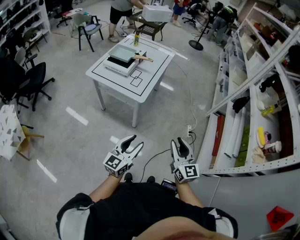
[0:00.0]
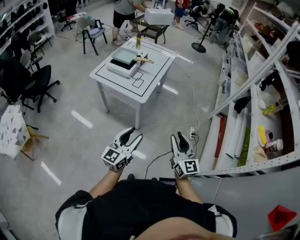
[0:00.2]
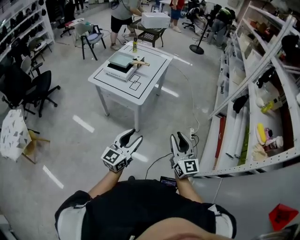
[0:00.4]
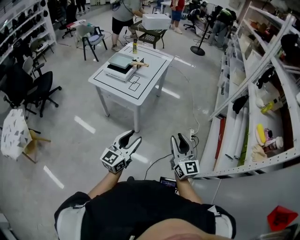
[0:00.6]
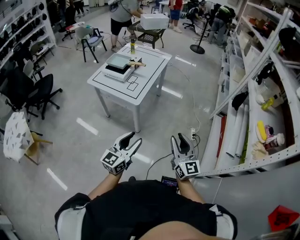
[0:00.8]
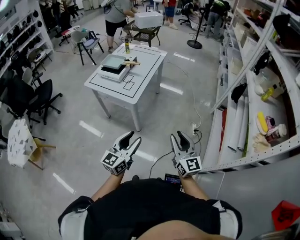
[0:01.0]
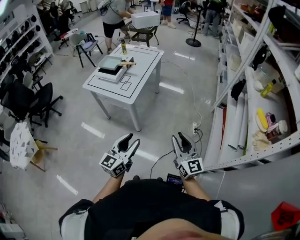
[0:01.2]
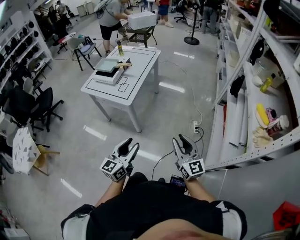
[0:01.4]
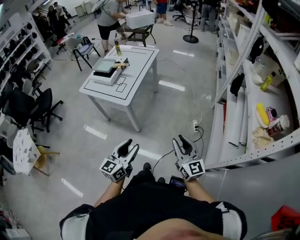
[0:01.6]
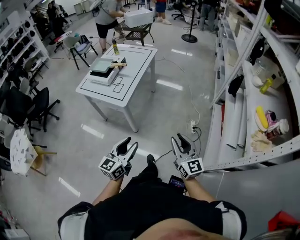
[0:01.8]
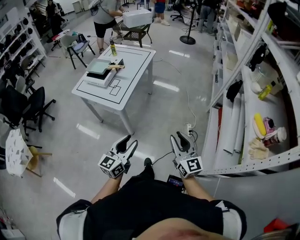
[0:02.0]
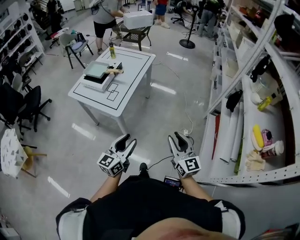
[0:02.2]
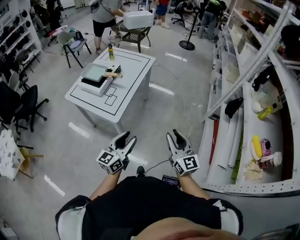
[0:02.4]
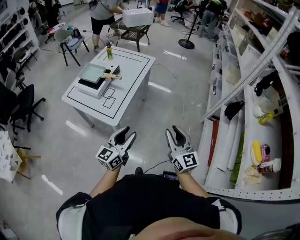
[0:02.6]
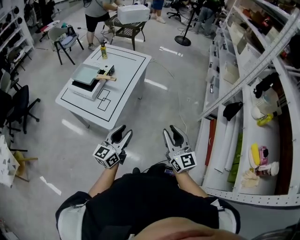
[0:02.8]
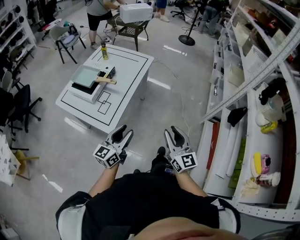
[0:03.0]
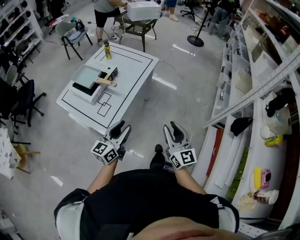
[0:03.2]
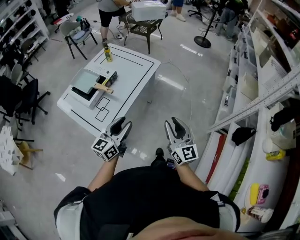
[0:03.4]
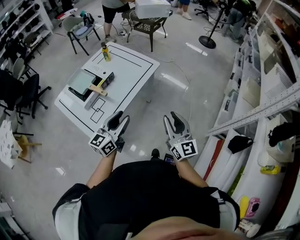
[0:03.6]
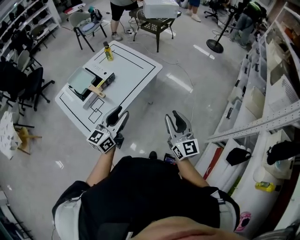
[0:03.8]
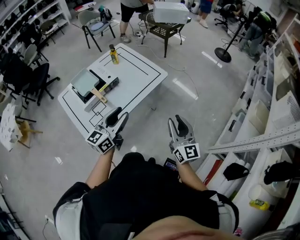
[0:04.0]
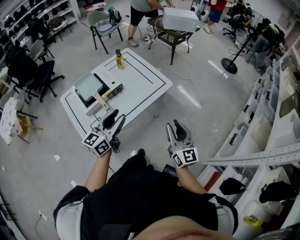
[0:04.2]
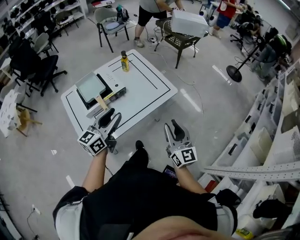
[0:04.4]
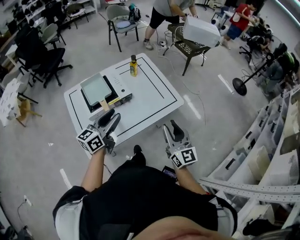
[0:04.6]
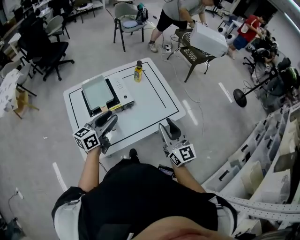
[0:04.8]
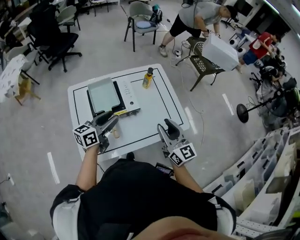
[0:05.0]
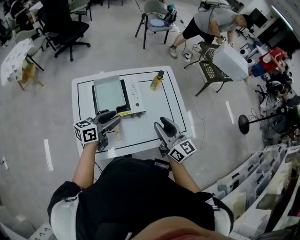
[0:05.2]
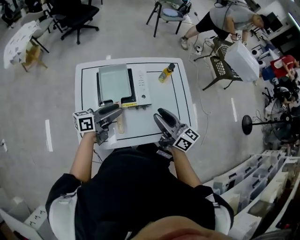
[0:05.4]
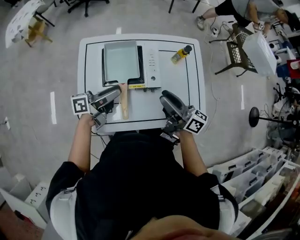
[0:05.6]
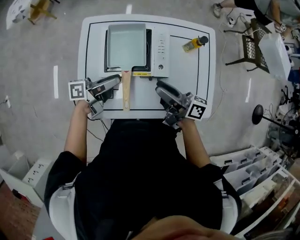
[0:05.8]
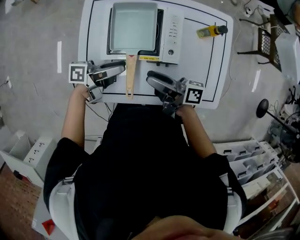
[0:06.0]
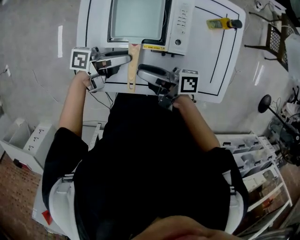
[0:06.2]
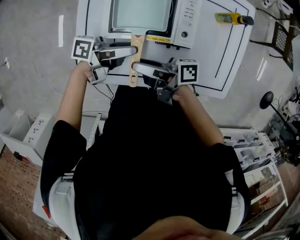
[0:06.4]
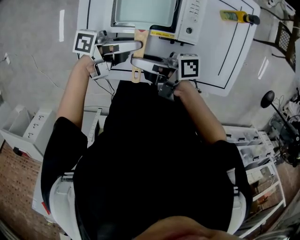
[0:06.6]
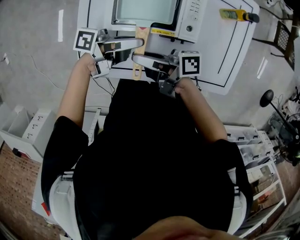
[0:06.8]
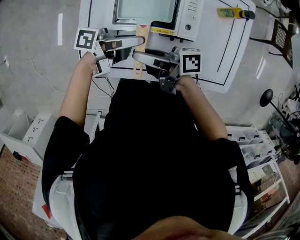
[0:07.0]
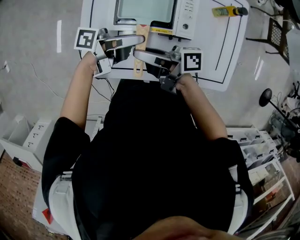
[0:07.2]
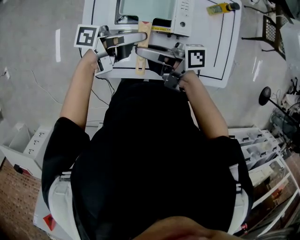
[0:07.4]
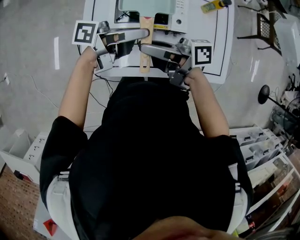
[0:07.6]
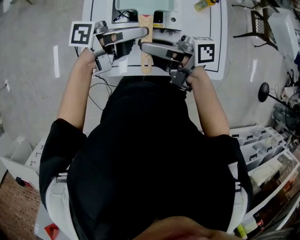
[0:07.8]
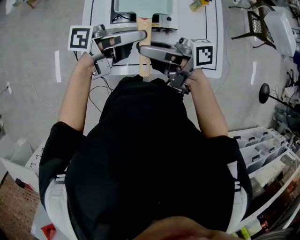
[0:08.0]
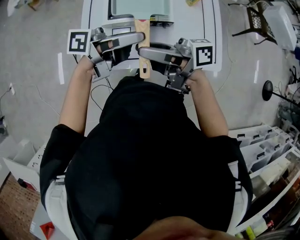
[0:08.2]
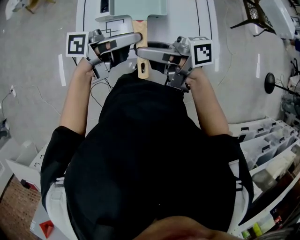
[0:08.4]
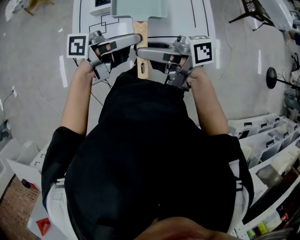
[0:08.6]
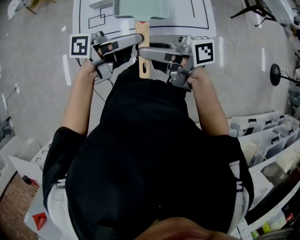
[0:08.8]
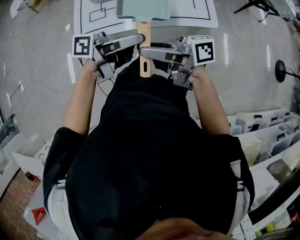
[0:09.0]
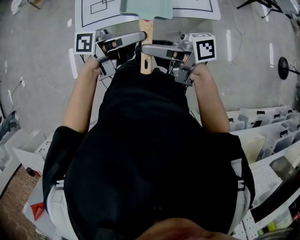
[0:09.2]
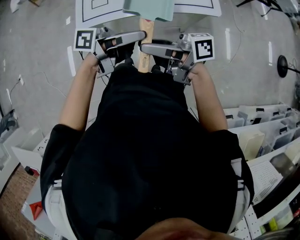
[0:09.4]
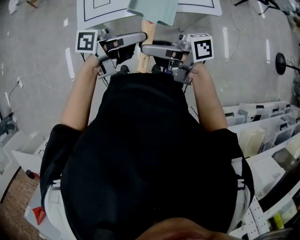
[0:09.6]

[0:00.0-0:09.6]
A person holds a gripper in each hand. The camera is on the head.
0:00.0 to 0:01.6: Both grippers travel together to the right, roughly 15 cm.
0:01.6 to 0:03.2: Both grippers move forward, approximately 40 cm.
0:03.2 to 0:04.8: The right gripper moves about 40 cm, and swivels roughly 40 degrees. The left gripper changes place by approximately 35 cm, and turns by roughly 30 degrees.
0:04.8 to 0:06.4: The right gripper ends up approximately 35 cm from where it was, and rotates approximately 120 degrees; the left gripper heads downward, covering about 20 cm, and rolls counterclockwise, seen from behind, by about 60 degrees.
0:06.4 to 0:08.0: Both grippers move upward, about 15 cm. The right gripper changes its angle by about 20 degrees.
0:08.0 to 0:09.6: The left gripper ends up some 30 cm from where it was; the right gripper ends up approximately 30 cm from where it was.

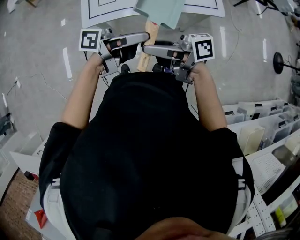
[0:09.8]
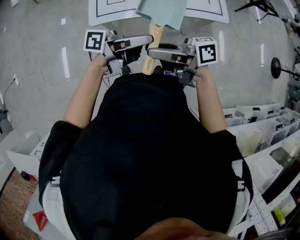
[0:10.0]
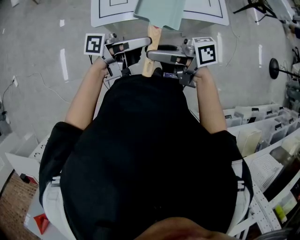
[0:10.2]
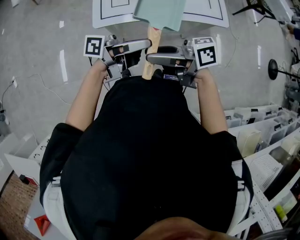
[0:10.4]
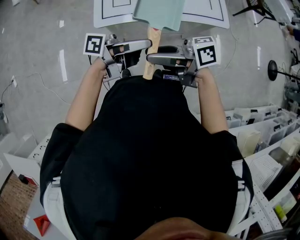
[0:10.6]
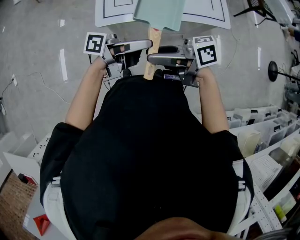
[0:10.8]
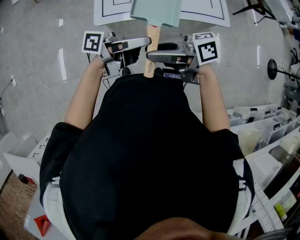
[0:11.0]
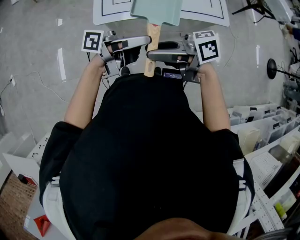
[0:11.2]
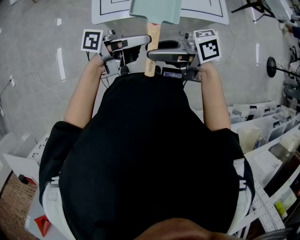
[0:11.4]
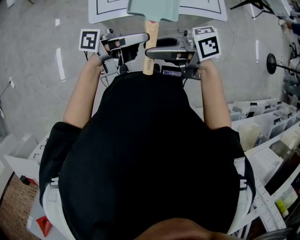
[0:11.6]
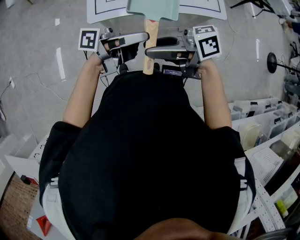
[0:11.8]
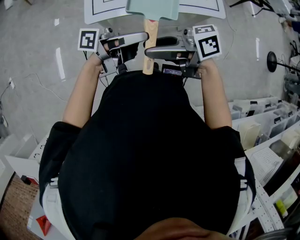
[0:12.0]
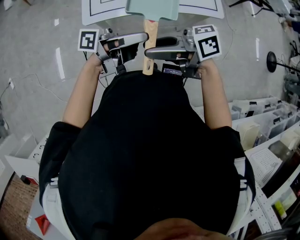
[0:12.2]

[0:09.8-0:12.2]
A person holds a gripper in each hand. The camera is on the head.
0:09.8 to 0:11.0: The grippers make only small movements.
0:11.0 to 0:12.2: Both grippers stay about where they are.

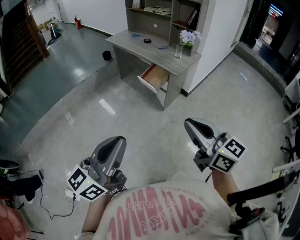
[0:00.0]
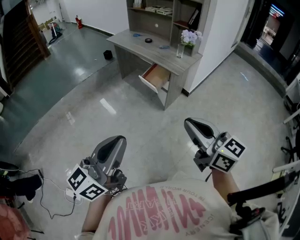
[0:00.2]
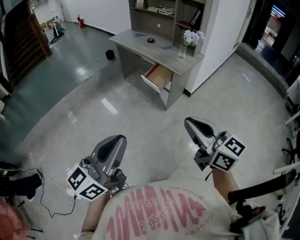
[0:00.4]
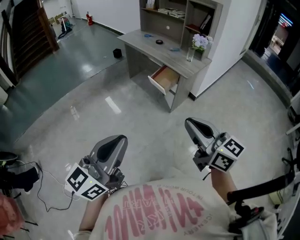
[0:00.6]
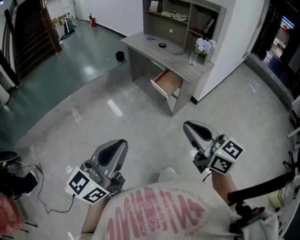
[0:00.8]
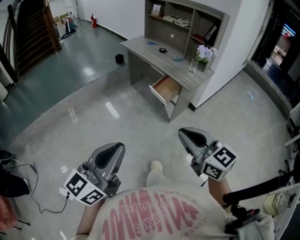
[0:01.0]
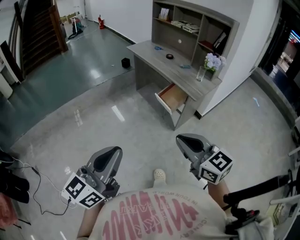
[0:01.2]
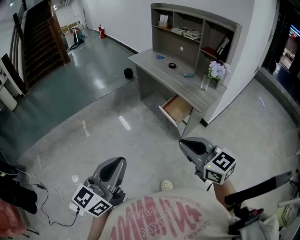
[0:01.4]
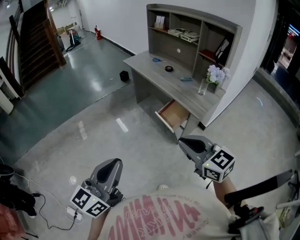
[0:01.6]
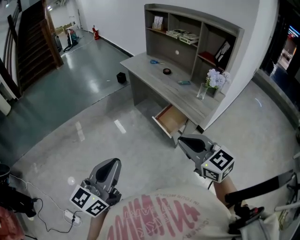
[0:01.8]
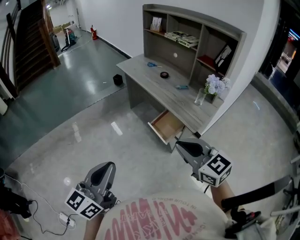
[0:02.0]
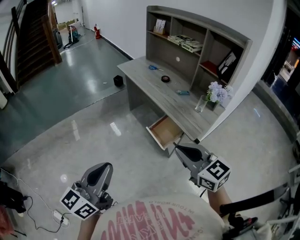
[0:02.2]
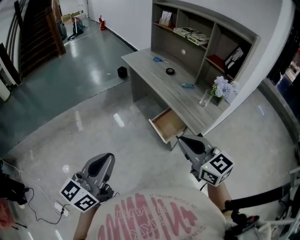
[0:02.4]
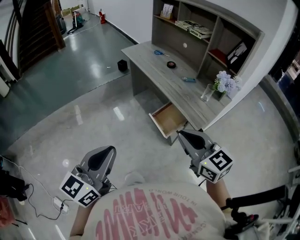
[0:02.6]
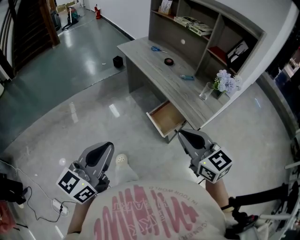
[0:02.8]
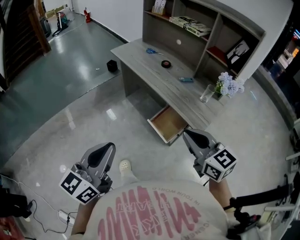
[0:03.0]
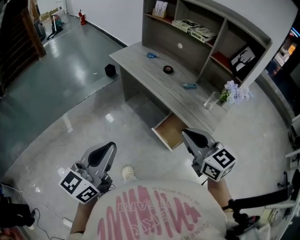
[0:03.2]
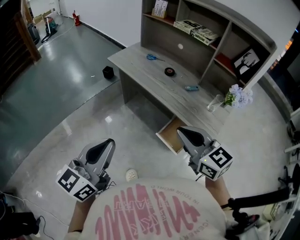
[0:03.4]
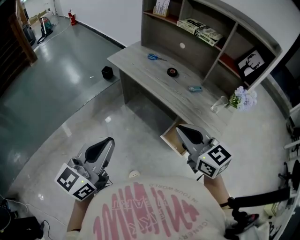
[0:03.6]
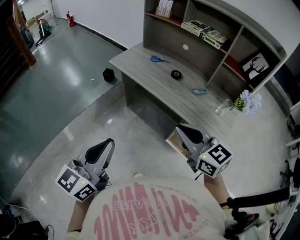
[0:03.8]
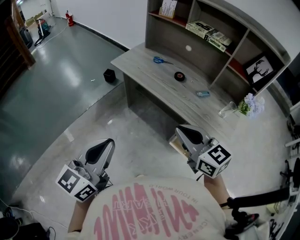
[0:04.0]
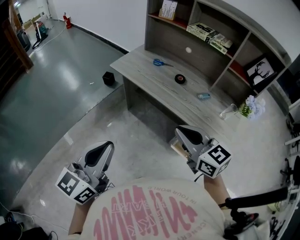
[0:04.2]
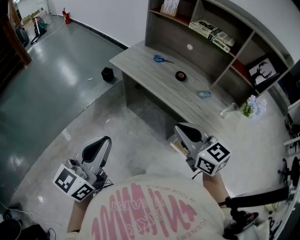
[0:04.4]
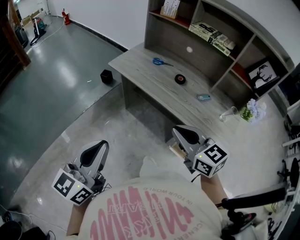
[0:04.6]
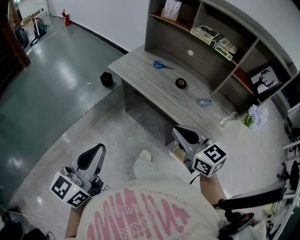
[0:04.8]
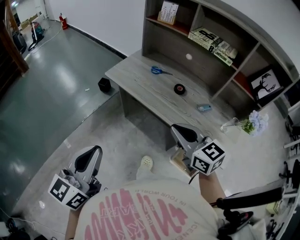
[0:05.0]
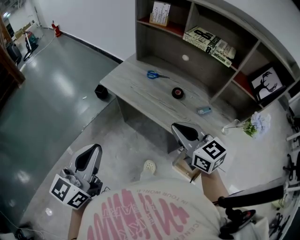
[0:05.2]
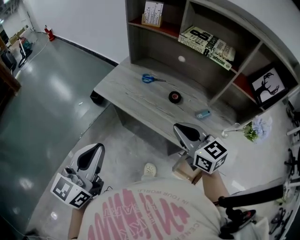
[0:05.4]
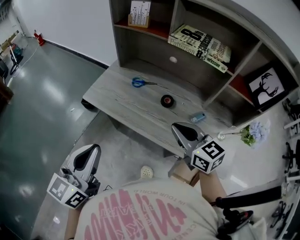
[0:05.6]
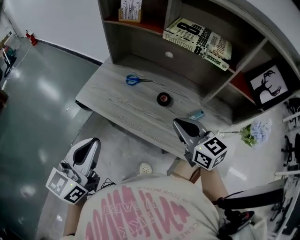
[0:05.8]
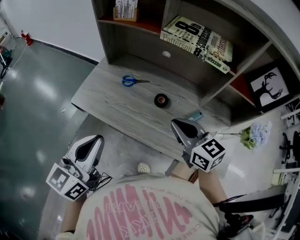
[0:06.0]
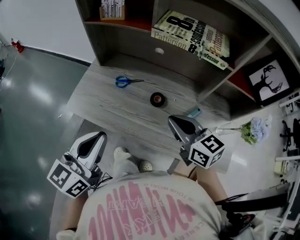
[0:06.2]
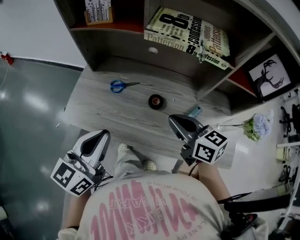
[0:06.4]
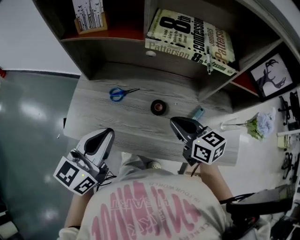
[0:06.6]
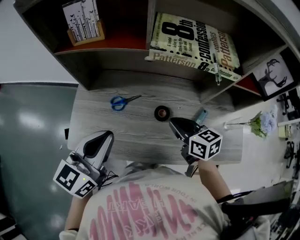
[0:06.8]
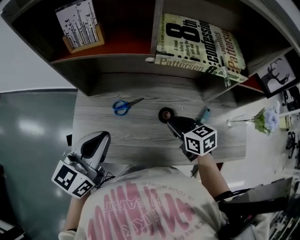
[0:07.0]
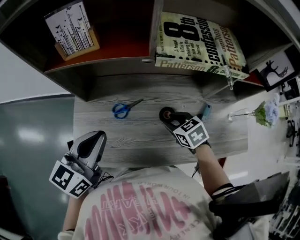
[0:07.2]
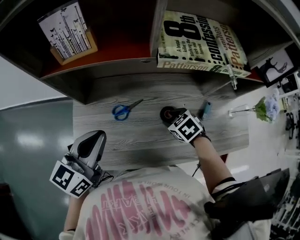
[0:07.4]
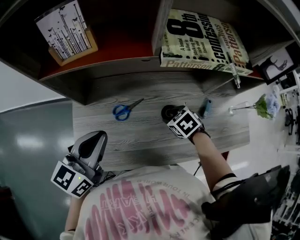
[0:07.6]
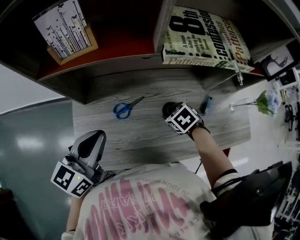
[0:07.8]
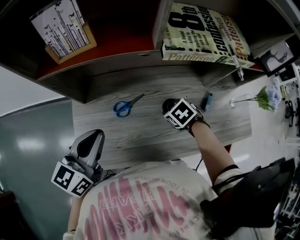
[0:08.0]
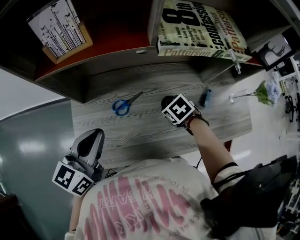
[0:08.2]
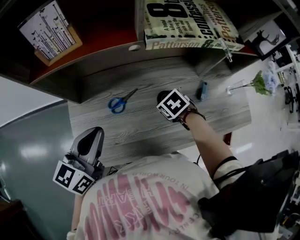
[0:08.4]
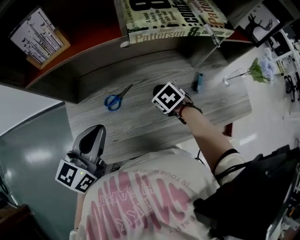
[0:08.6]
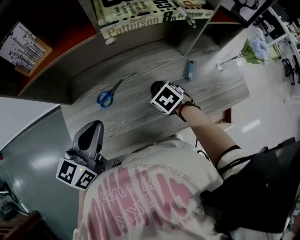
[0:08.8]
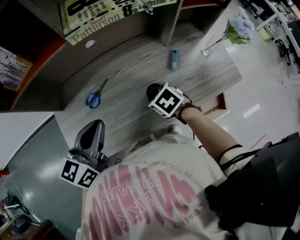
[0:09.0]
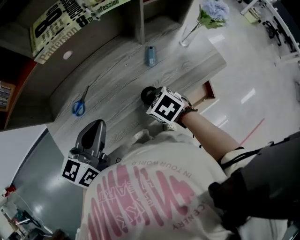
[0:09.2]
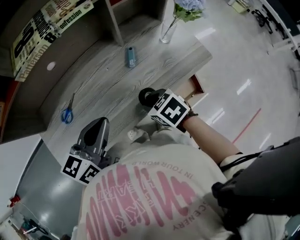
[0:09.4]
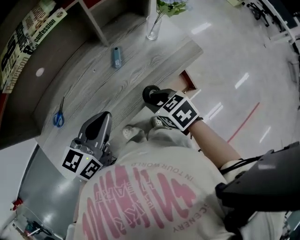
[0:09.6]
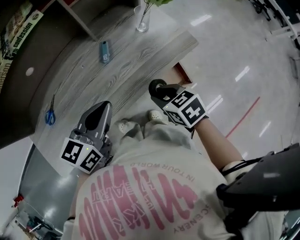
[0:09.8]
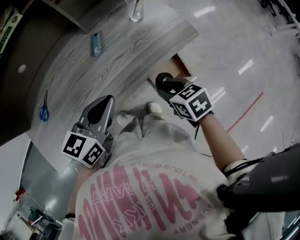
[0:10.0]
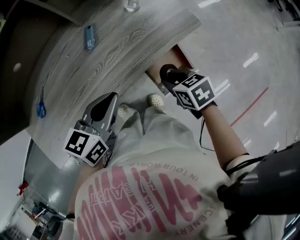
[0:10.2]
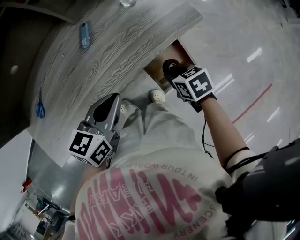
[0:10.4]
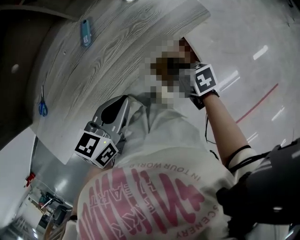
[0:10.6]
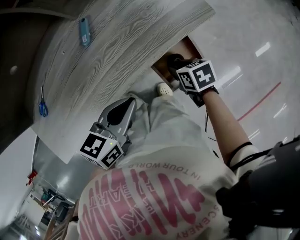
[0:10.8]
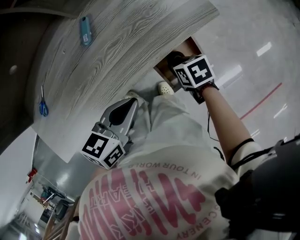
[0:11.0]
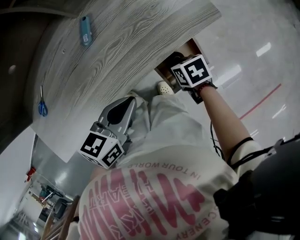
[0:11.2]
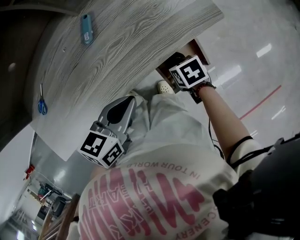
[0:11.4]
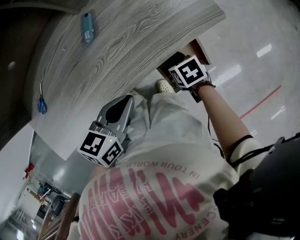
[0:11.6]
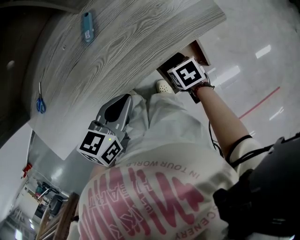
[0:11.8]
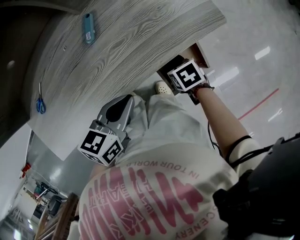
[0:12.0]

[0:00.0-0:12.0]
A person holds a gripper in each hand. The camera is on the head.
0:00.0 to 0:01.6: Both grippers move forward, some 25 cm. The right gripper swivels approximately 20 degrees.
0:01.6 to 0:03.0: The two grippers go some 20 cm forward.
0:03.0 to 0:04.4: Both grippers move forward and to the left, roughly 30 cm.
0:04.4 to 0:06.0: Both grippers travel together forward, approximately 30 cm.
0:06.0 to 0:07.6: The left gripper travels forward by some 25 cm, and swivels roughly 30 degrees. Meanwhile the right gripper travels downward and forward by approximately 25 cm, tips its fingers downward by approximately 50 degrees, and opens its fingers.
0:07.6 to 0:09.0: The left gripper moves to the right, roughly 10 cm; the right gripper shifts about 10 cm backward.
0:09.0 to 0:10.4: The right gripper is displaced to the right by approximately 35 cm, and changes its angle by some 30 degrees, while the left gripper is displaced to the right and downward by approximately 35 cm, and turns by about 30 degrees.
0:10.4 to 0:12.0: The right gripper is displaced downward by approximately 10 cm.
